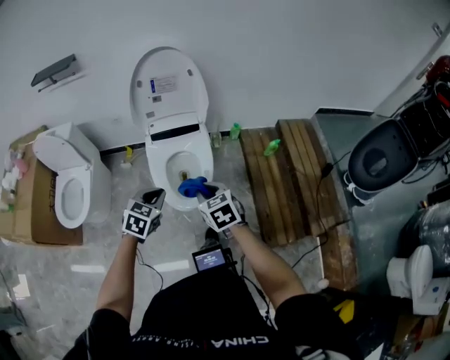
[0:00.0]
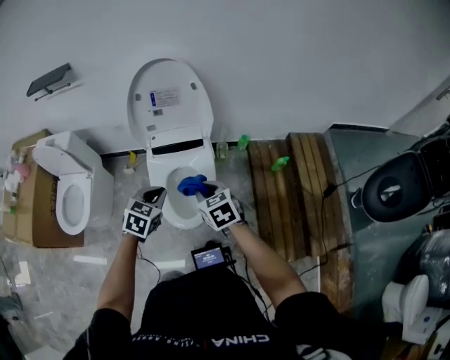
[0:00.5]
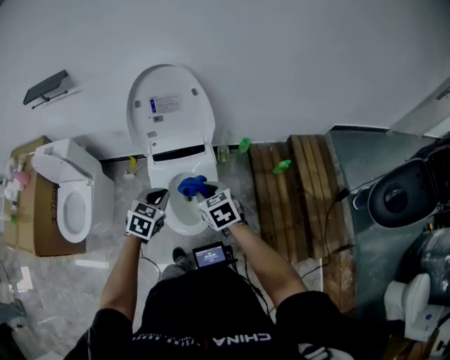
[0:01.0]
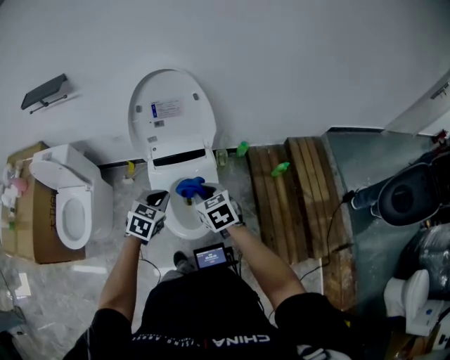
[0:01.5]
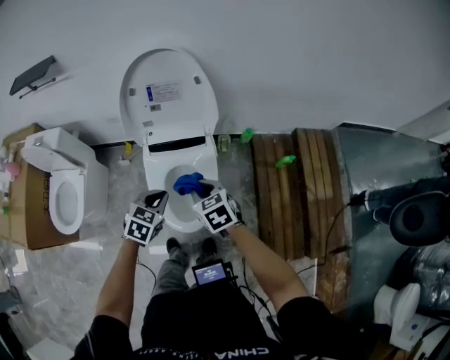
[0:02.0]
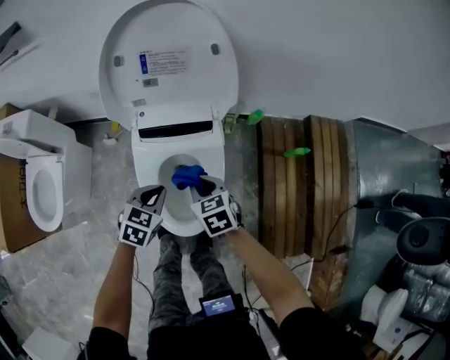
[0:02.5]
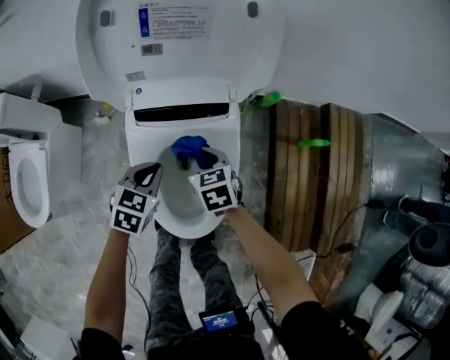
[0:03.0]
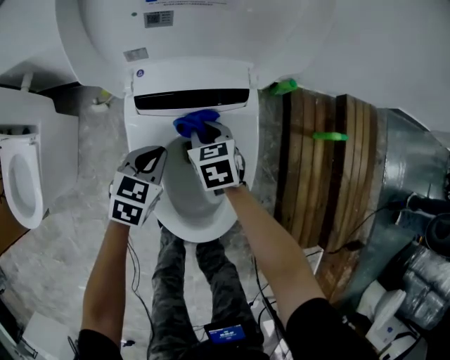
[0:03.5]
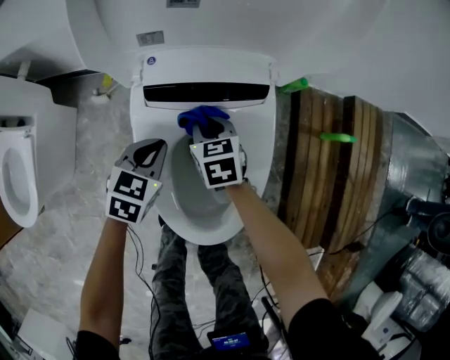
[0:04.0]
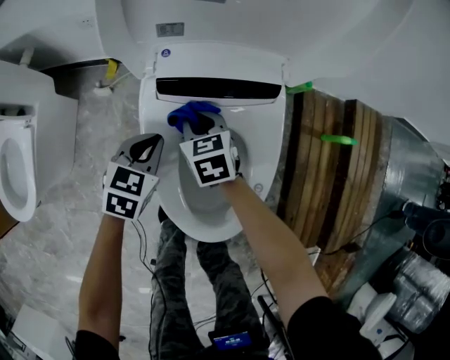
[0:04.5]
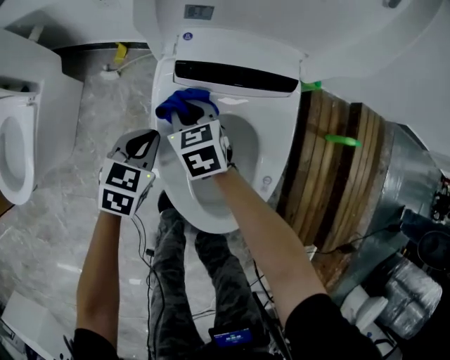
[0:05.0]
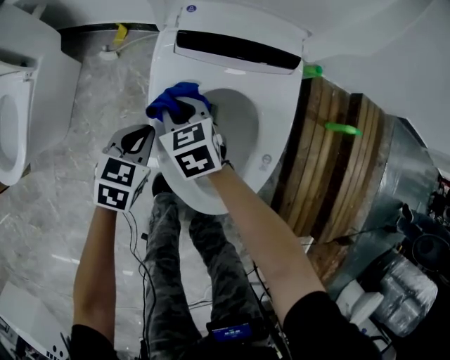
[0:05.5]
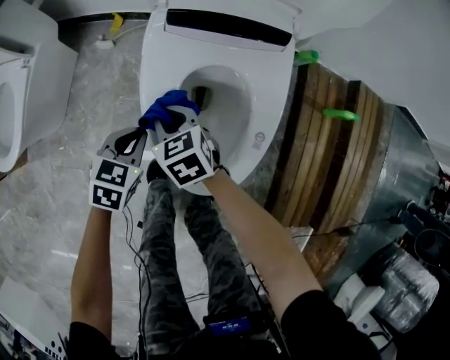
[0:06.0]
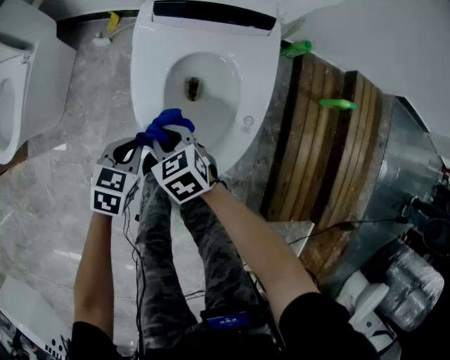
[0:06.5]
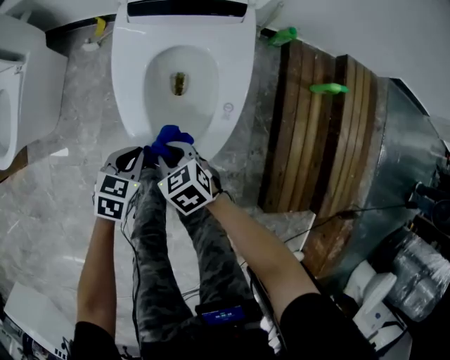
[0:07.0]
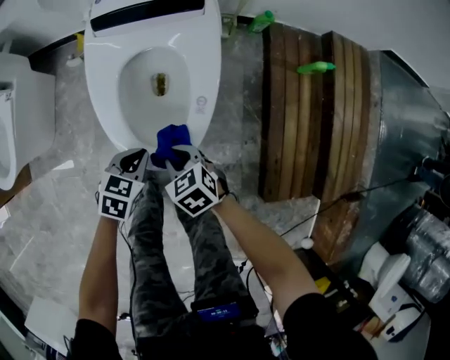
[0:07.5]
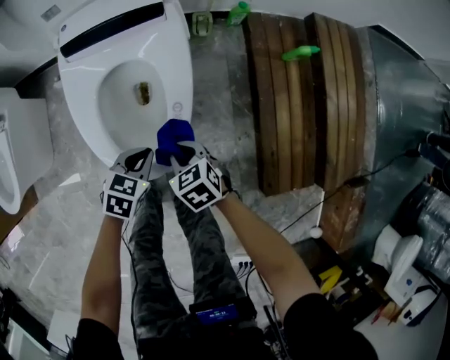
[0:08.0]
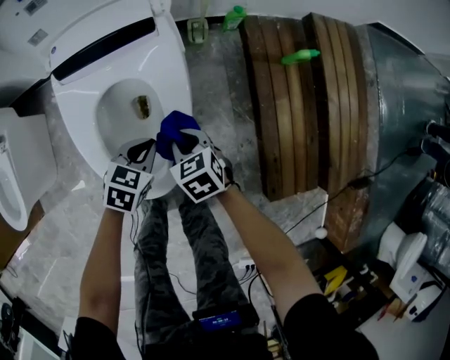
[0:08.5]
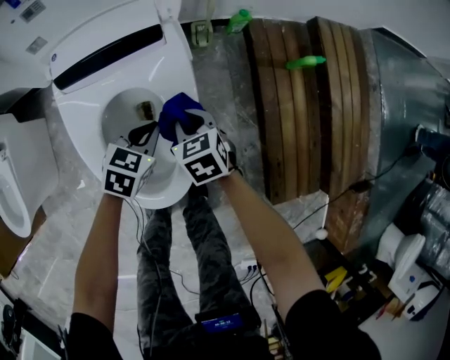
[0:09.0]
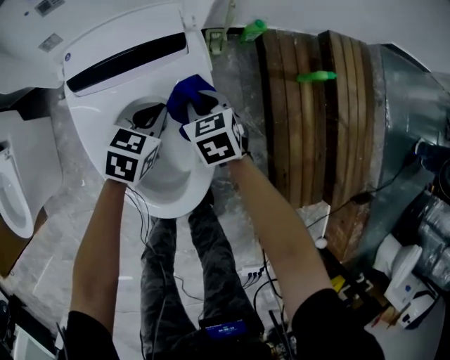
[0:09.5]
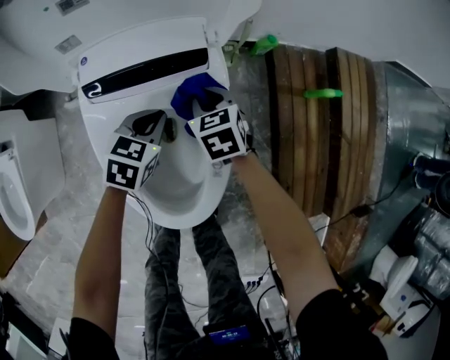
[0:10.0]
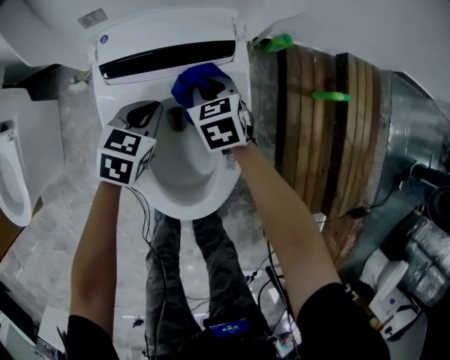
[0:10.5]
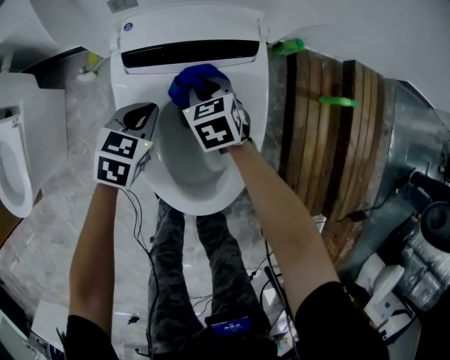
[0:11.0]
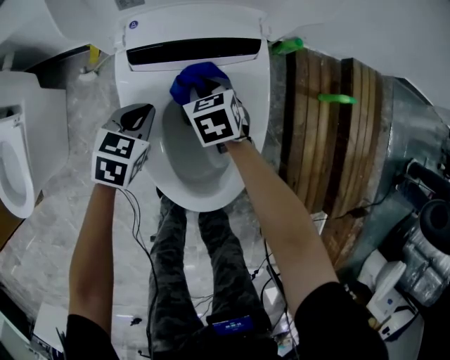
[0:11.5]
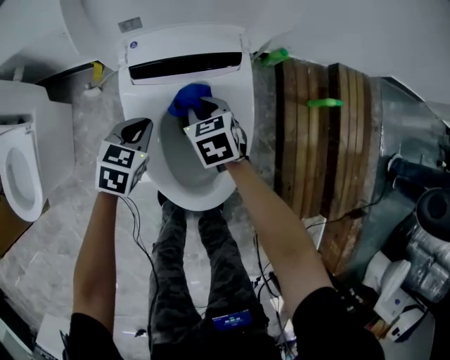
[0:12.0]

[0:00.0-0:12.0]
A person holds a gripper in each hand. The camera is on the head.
0:00.0 to 0:02.0: Both grippers move forward, some 20 cm.
0:02.0 to 0:04.0: Both grippers travel together downward and forward, some 40 cm.
0:04.0 to 0:06.0: The grippers both shift backward and to the left by some 20 cm.
0:06.0 to 0:08.0: The grippers both shift to the right and backward by some 25 cm.
0:08.0 to 0:10.0: Both grippers move forward, roughly 25 cm.
0:10.0 to 0:12.0: Both grippers move to the left, backward and upward, some 15 cm.

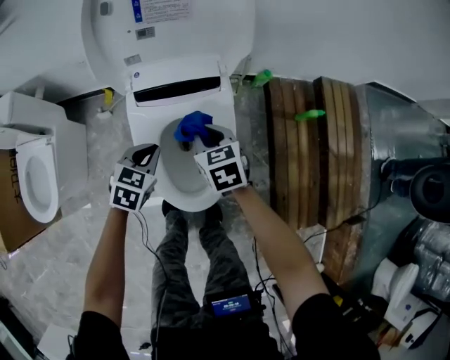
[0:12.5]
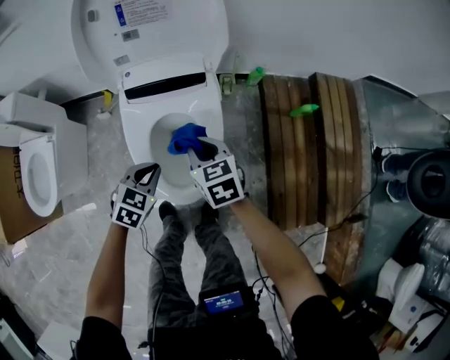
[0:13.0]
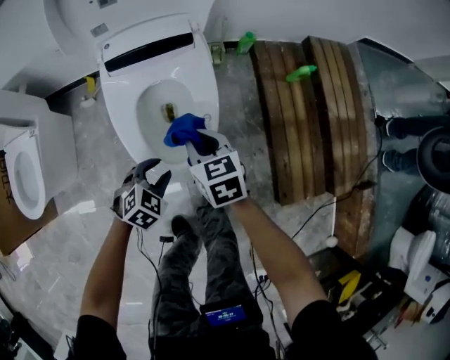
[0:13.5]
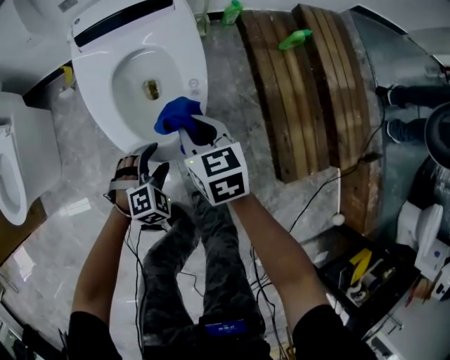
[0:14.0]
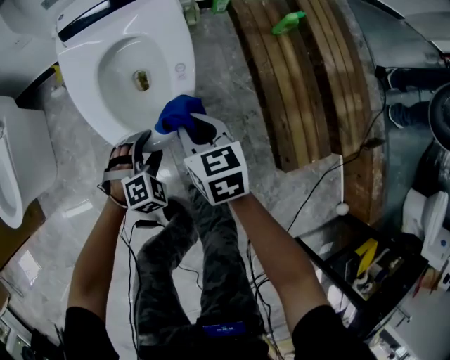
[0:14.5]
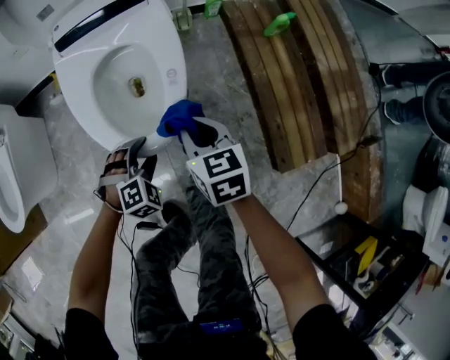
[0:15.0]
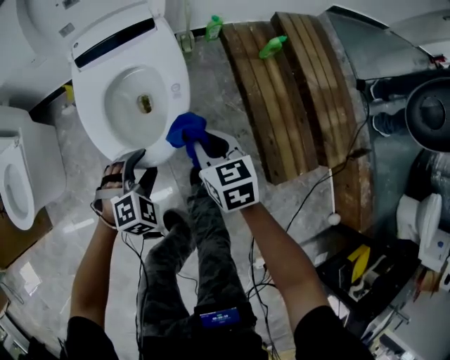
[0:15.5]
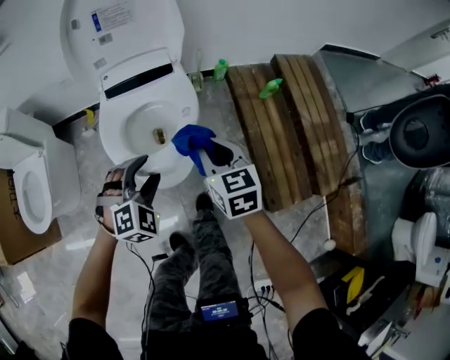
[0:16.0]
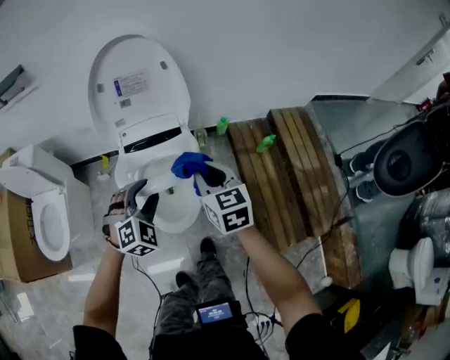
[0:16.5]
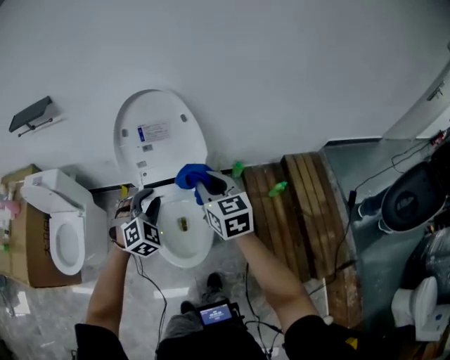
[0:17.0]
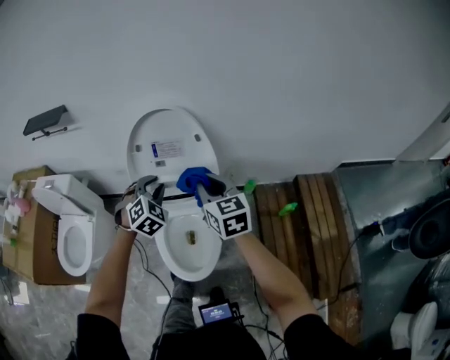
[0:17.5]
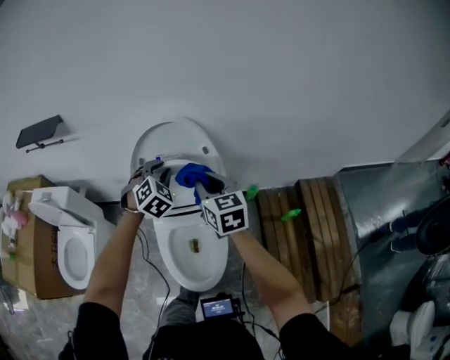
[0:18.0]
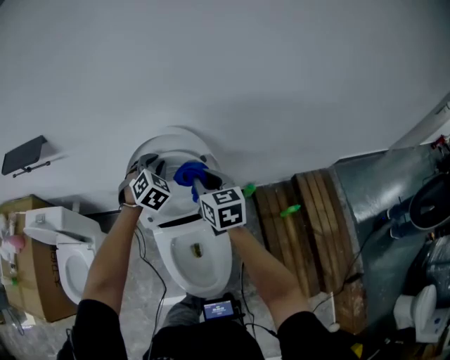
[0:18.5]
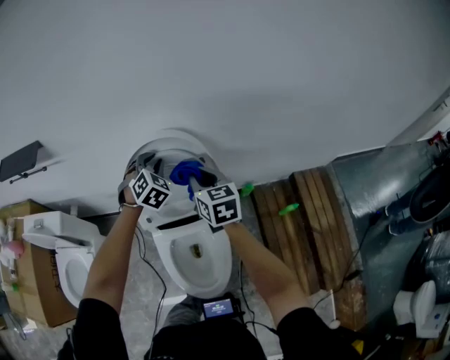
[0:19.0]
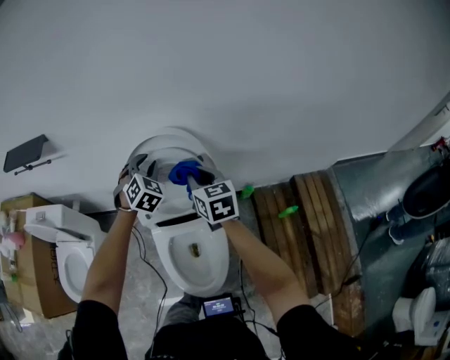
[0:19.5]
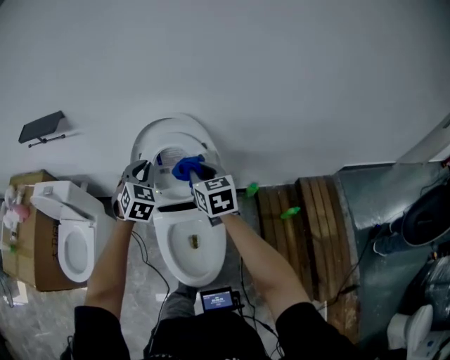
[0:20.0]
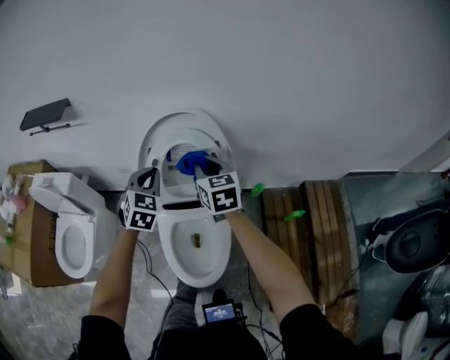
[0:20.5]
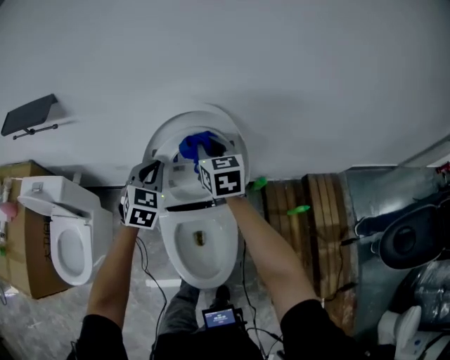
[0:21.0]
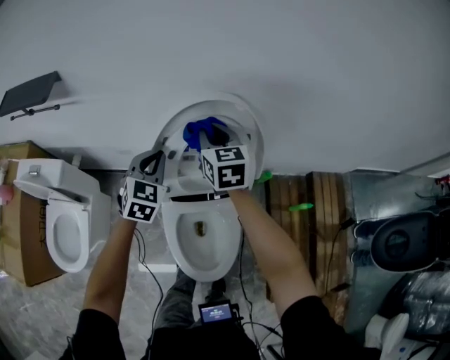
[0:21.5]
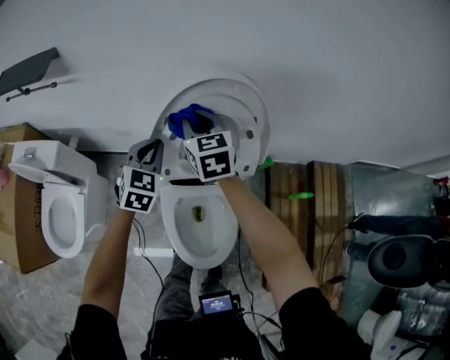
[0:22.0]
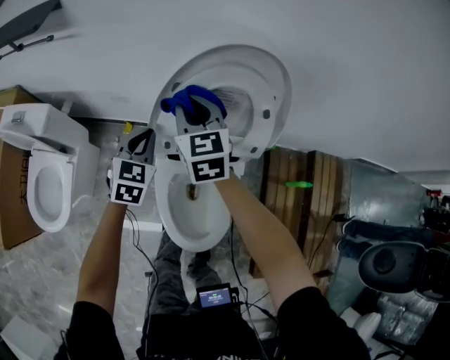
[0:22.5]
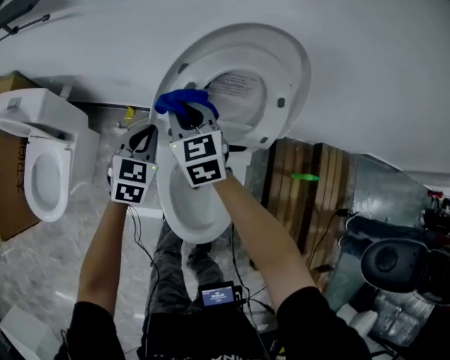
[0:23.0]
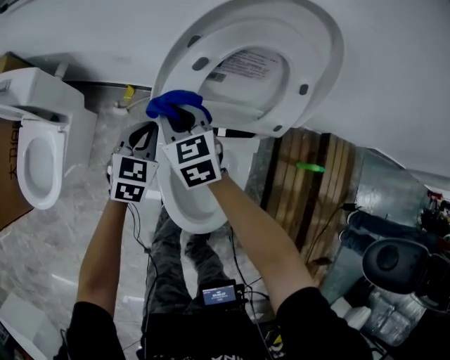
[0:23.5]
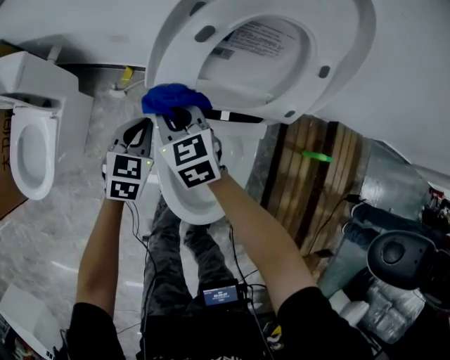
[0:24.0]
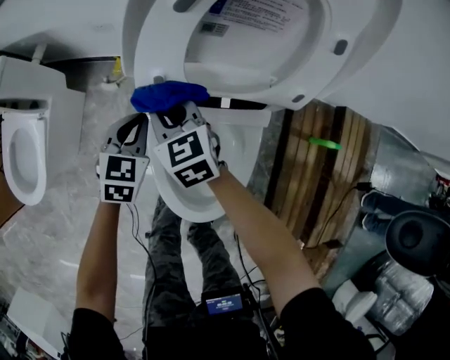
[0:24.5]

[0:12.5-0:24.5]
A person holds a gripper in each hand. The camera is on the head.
0:12.5 to 0:14.5: The grippers both shift backward, downward and to the right by roughly 30 cm. The left gripper rotates around the line of its fingers by roughly 50 degrees, clockwise from behind, and opens.
0:14.5 to 0:16.5: The two grippers go approximately 40 cm upward.
0:16.5 to 0:18.5: The two grippers go roughly 40 cm forward. The left gripper closes its fingers.
0:18.5 to 0:20.5: The left gripper is displaced backward and to the left by about 15 cm, and changes its angle by roughly 20 degrees.
0:20.5 to 0:22.5: The left gripper heads downward and to the left, covering approximately 20 cm. The right gripper is displaced to the left, downward and forward by about 20 cm.
0:22.5 to 0:24.5: The grippers both shift downward by roughly 25 cm.

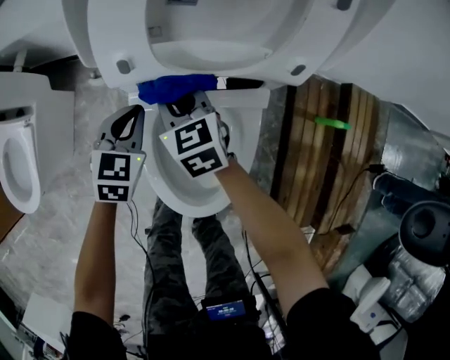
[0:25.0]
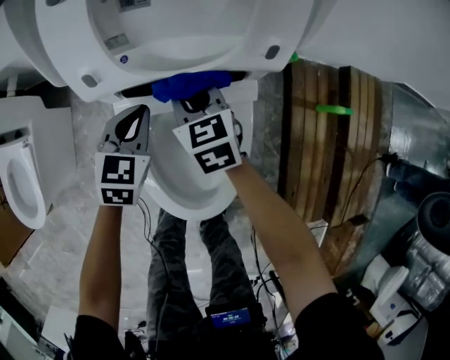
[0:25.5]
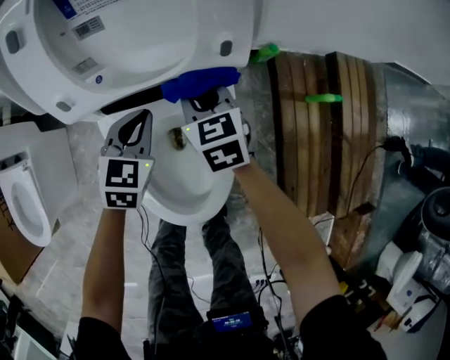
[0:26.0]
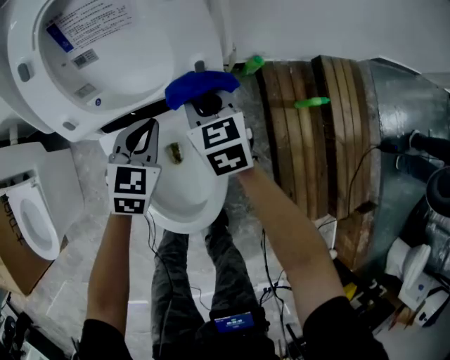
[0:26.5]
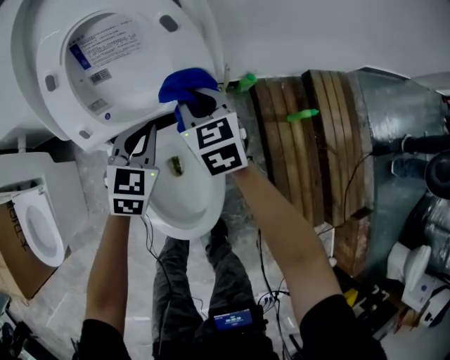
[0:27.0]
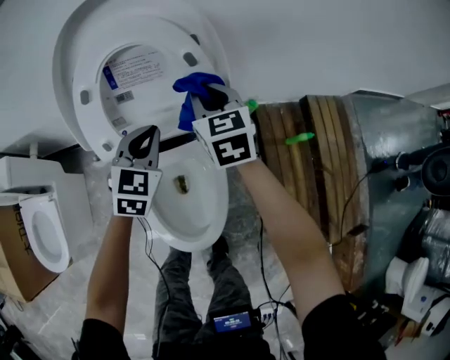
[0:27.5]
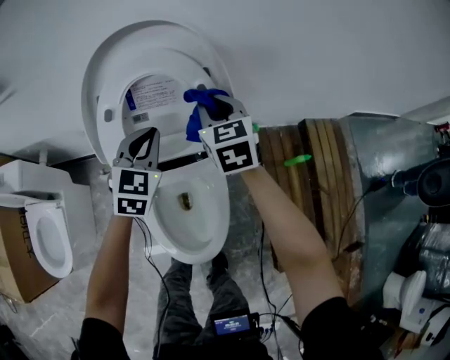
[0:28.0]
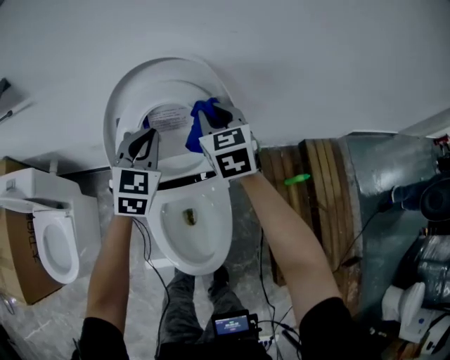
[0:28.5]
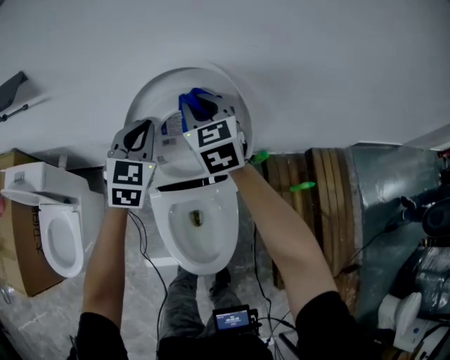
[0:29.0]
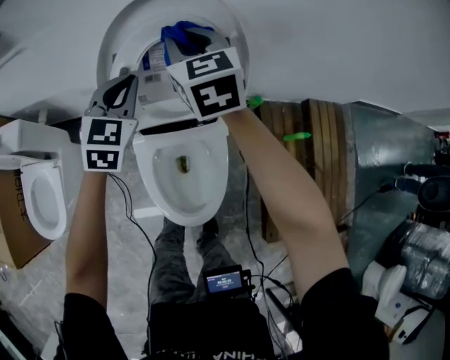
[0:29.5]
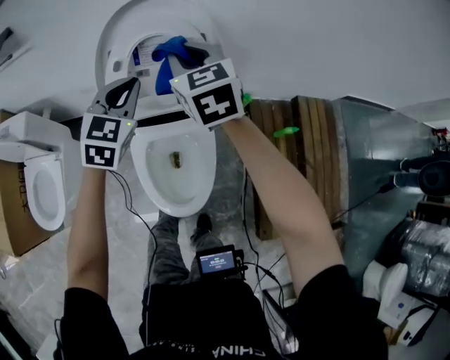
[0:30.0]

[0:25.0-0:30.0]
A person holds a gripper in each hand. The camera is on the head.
0:25.0 to 0:27.5: The right gripper shifts approximately 30 cm upward, to the right and forward, and swivels approximately 20 degrees, while the left gripper travels upward and to the right by roughly 25 cm.
0:27.5 to 0:30.0: The left gripper swings up and down, some 20 cm each way, with 2 reversals. The right gripper travels upward by some 20 cm.
